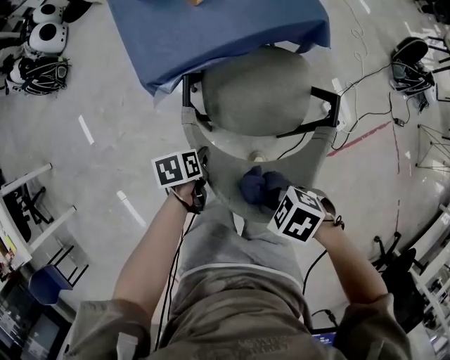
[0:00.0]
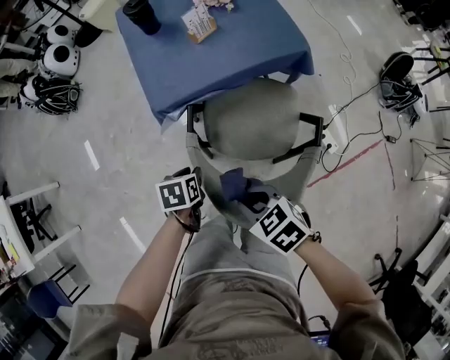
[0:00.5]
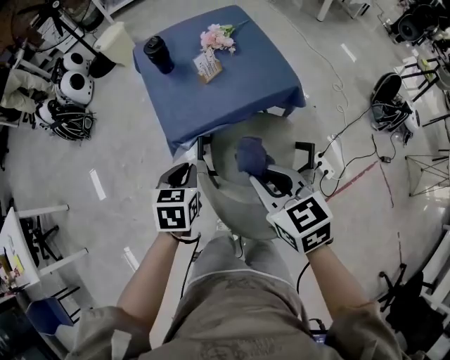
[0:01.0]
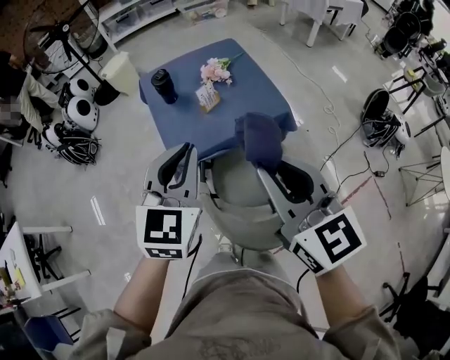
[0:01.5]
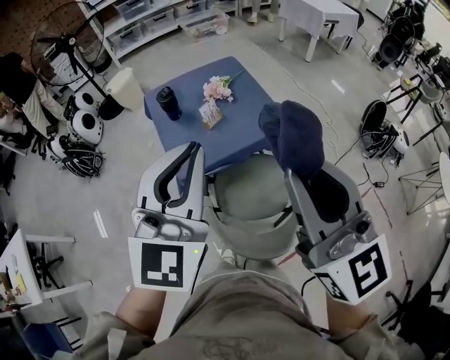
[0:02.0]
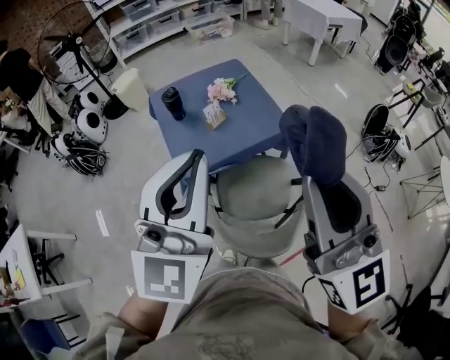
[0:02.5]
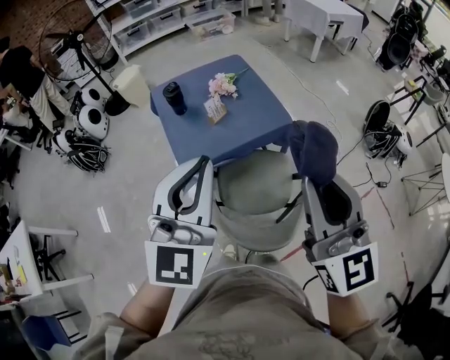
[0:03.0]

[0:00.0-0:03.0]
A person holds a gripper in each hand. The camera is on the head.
0:00.0 to 0:01.5: Both grippers travel together upward, some 40 cm. The right gripper tilts its fingers approximately 50 degrees upward; the left gripper points its fingers roughly 50 degrees further upward, and closes its fingers.
0:01.5 to 0:03.0: The left gripper shifts approximately 10 cm upward and backward; the right gripper moves to the right, backward and upward, about 10 cm.

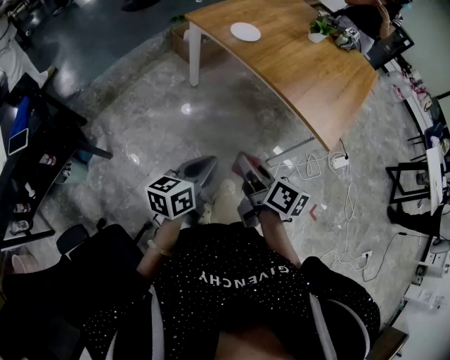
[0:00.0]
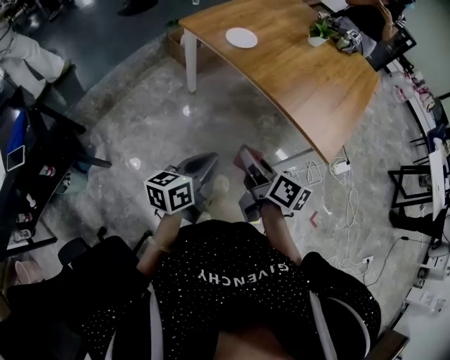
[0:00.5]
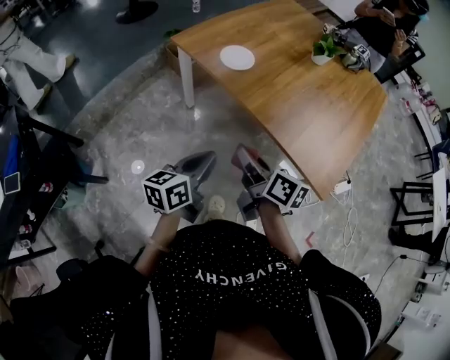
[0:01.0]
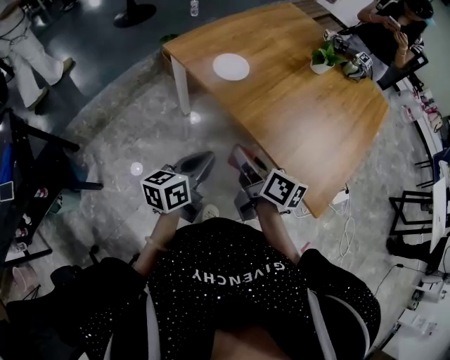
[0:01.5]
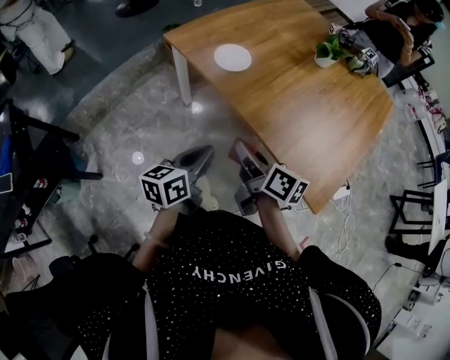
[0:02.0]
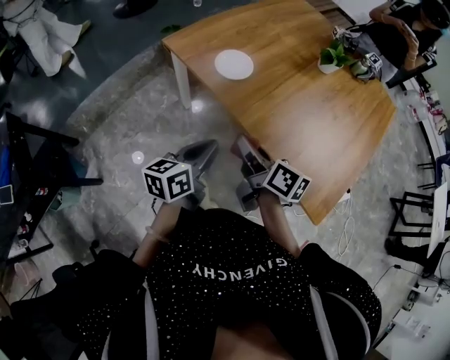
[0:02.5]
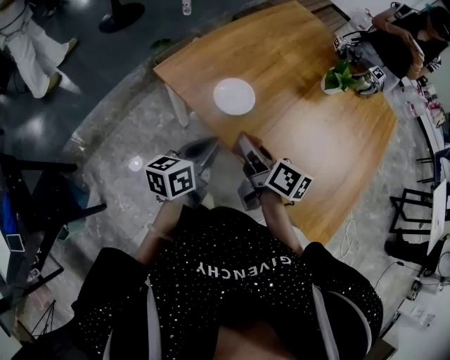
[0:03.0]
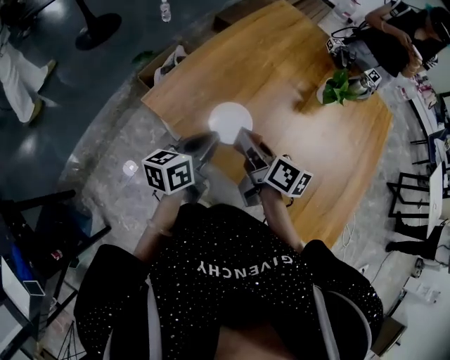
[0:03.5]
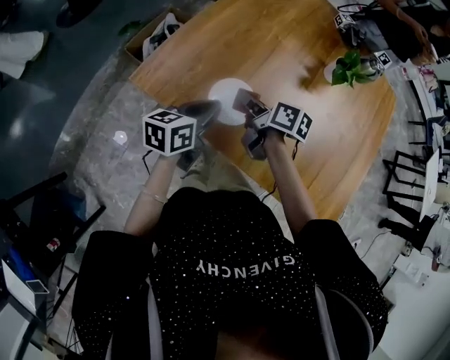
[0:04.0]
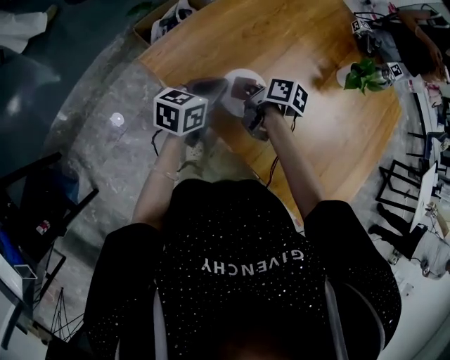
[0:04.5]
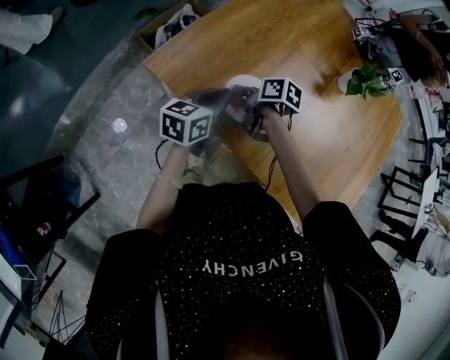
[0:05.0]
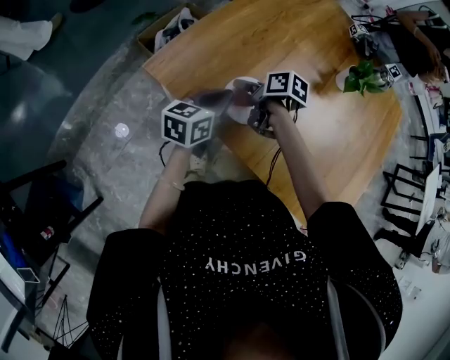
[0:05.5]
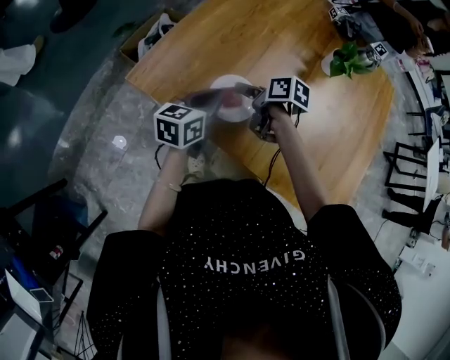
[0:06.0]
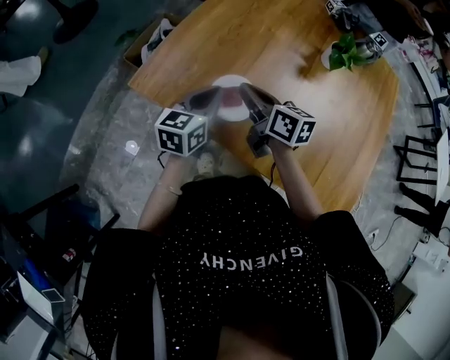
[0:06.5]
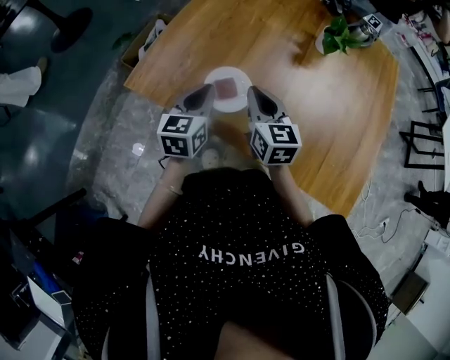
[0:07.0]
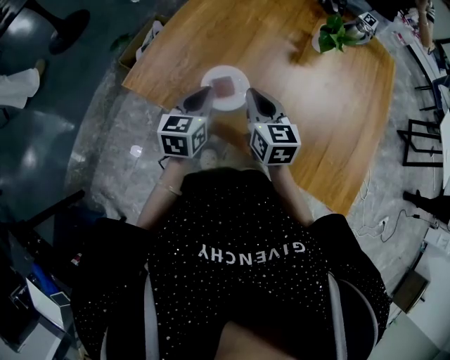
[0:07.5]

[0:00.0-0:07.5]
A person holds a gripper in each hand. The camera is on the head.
0:00.0 to 0:02.0: Both grippers travel together forward, roughly 30 cm.
0:02.0 to 0:04.0: The two grippers travel together, forward, roughly 40 cm. The left gripper changes its angle by approximately 20 degrees.
0:04.0 to 0:05.5: The right gripper moves downward, roughly 5 cm, changes its angle by roughly 20 degrees, and opens up.
0:05.5 to 0:07.5: The right gripper travels upward, backward and to the right by about 15 cm, changes its angle by roughly 50 degrees, and closes up.

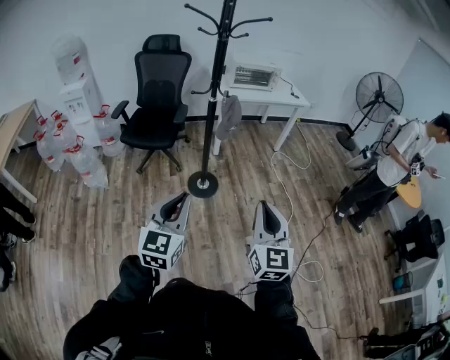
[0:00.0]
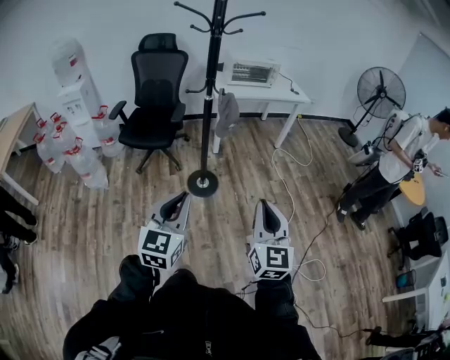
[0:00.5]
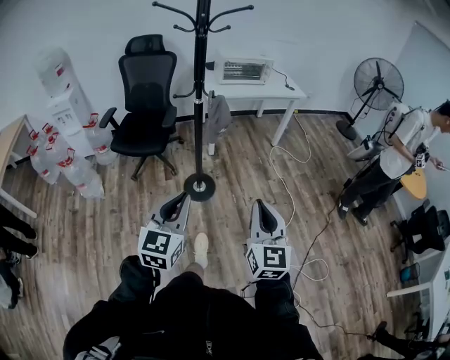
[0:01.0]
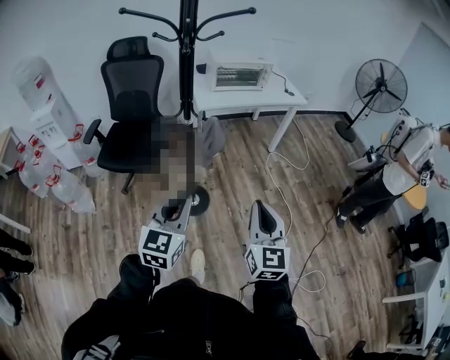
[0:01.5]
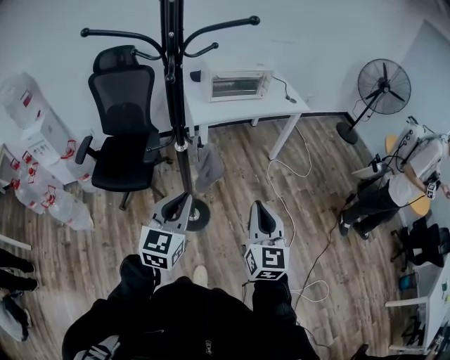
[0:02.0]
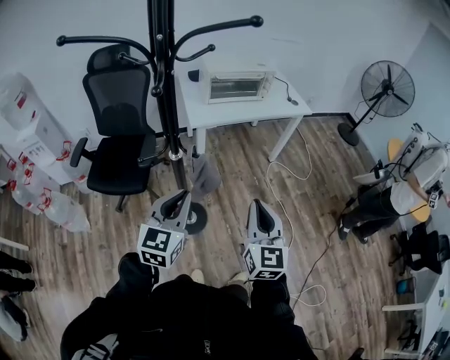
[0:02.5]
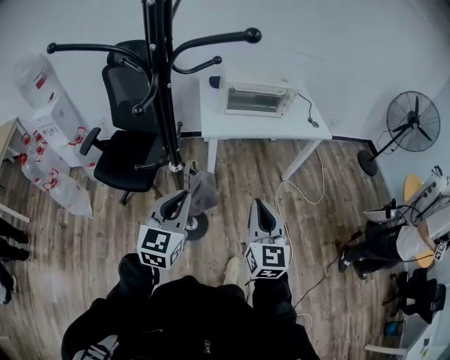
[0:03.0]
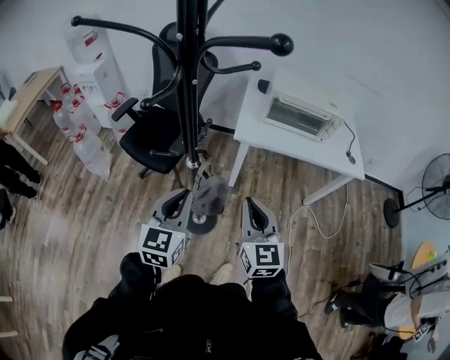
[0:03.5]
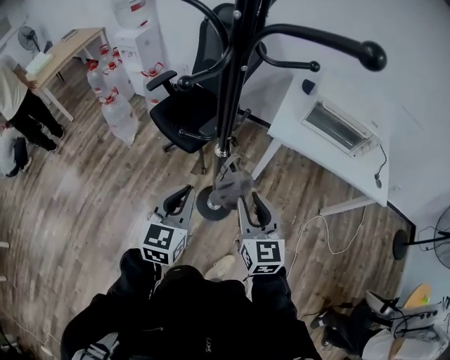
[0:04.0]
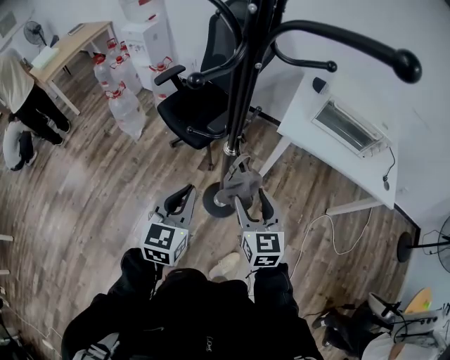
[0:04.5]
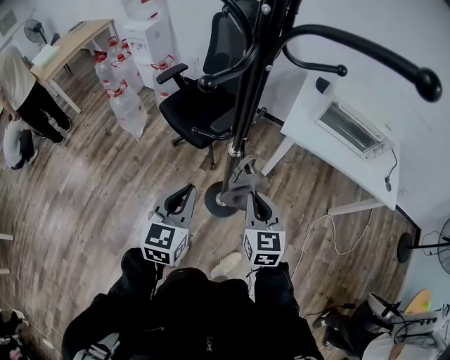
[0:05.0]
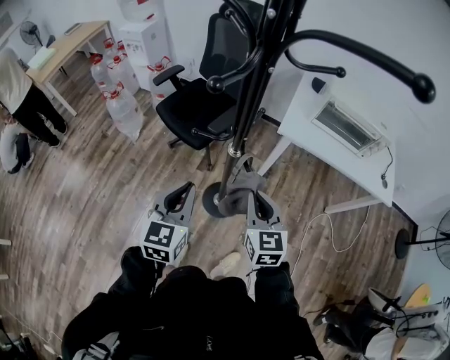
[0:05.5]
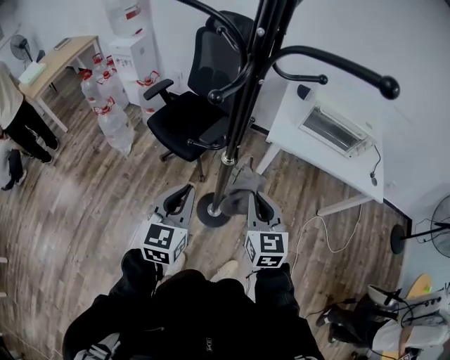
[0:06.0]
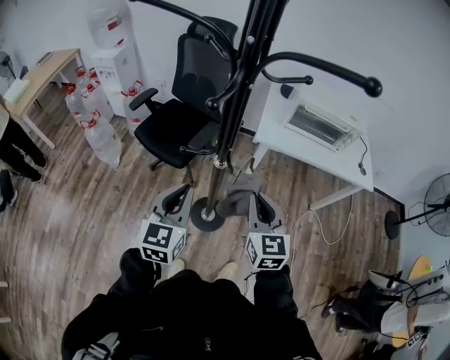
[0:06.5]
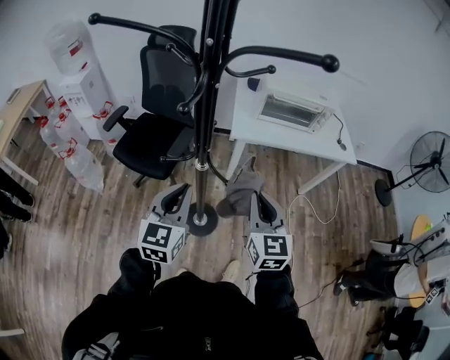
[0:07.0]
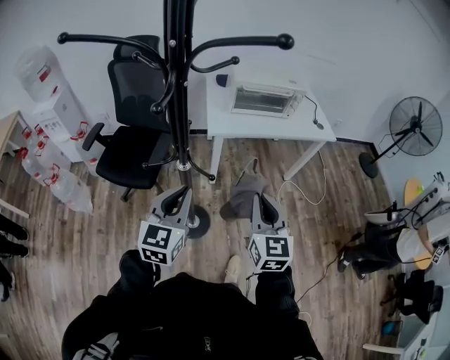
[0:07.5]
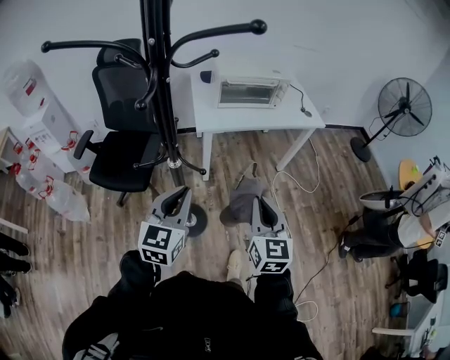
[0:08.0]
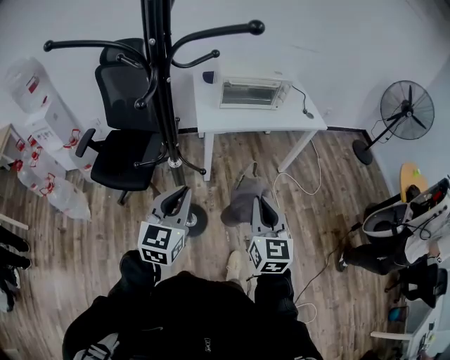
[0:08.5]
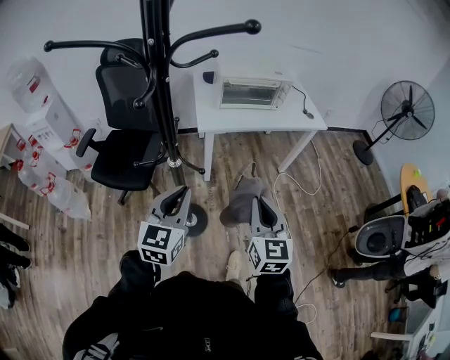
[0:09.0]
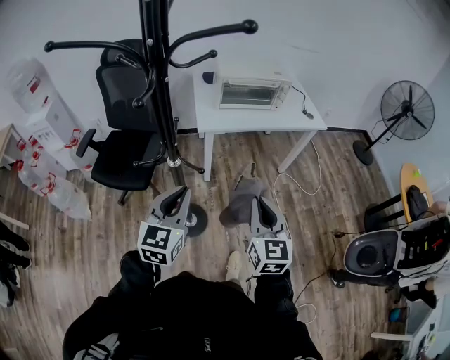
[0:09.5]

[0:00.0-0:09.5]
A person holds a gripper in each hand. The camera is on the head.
0:00.0 to 0:02.0: The pair of grippers is taken forward, roughly 50 cm.
0:02.0 to 0:04.0: The right gripper ends up some 25 cm from where it was, swivels roughly 50 degrees, and opens. Meanwhile the left gripper ends up roughly 15 cm from where it was, and changes its angle by approximately 40 degrees.
0:04.0 to 0:05.5: The right gripper closes up.
0:05.5 to 0:07.5: The left gripper moves roughly 10 cm, and turns by roughly 30 degrees, while the right gripper changes place by about 15 cm, and changes its angle by approximately 40 degrees.
0:07.5 to 0:09.5: The right gripper shifts by roughly 5 cm.

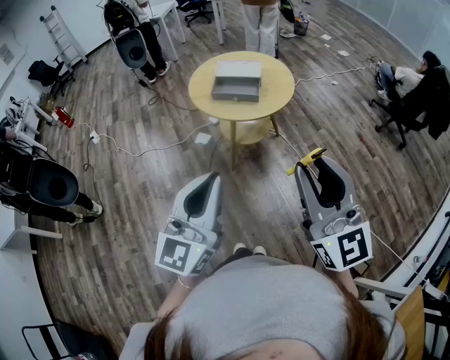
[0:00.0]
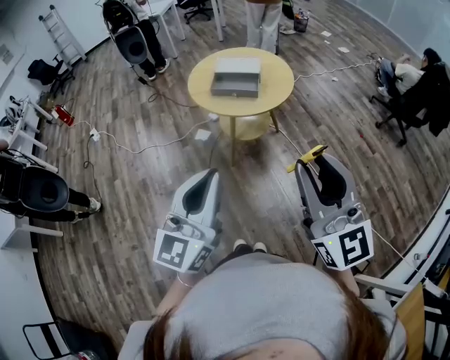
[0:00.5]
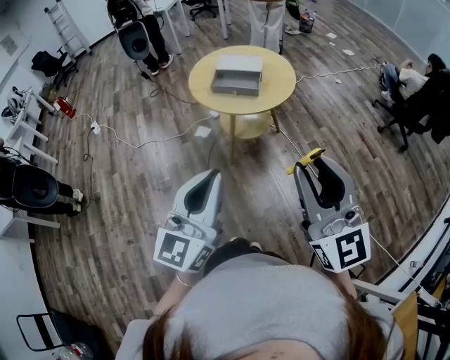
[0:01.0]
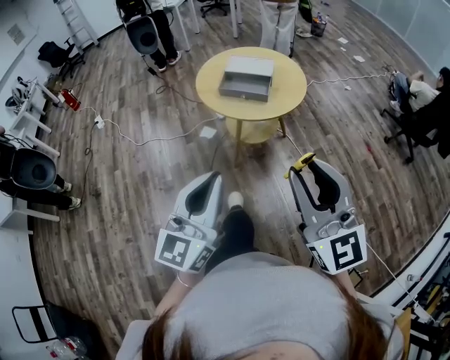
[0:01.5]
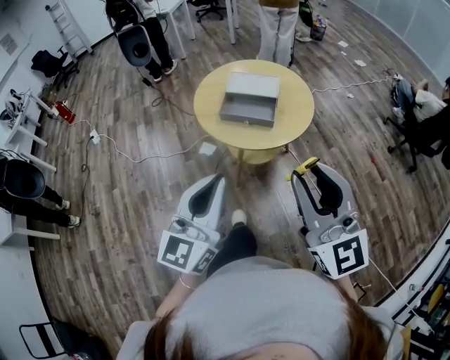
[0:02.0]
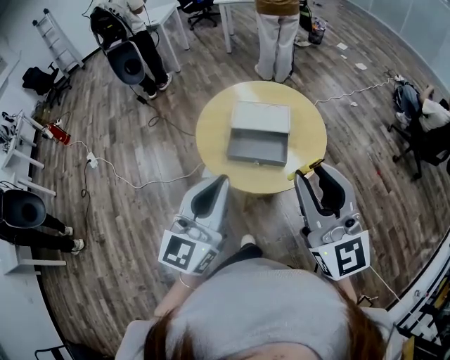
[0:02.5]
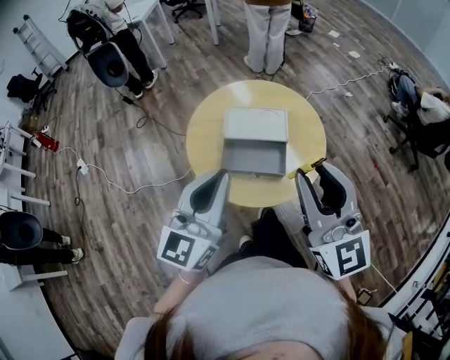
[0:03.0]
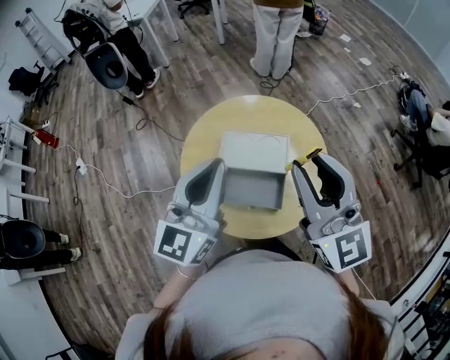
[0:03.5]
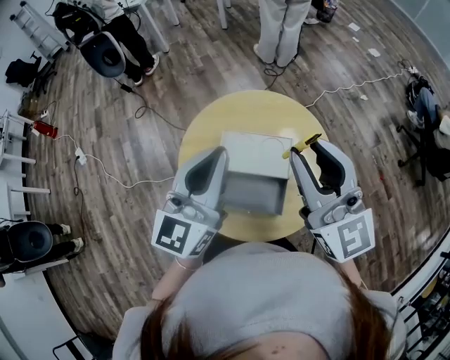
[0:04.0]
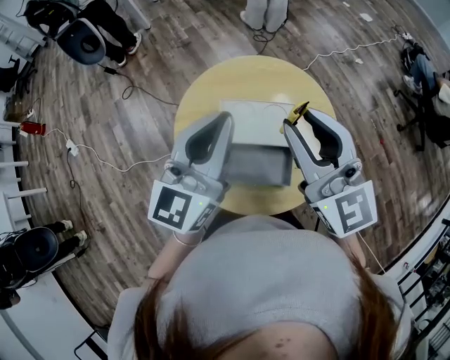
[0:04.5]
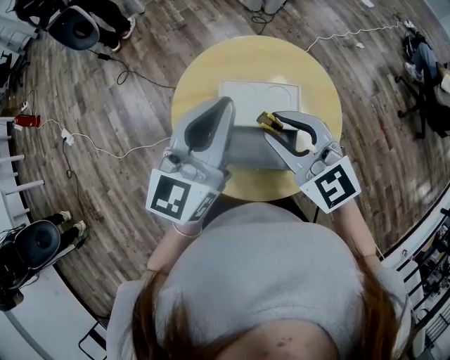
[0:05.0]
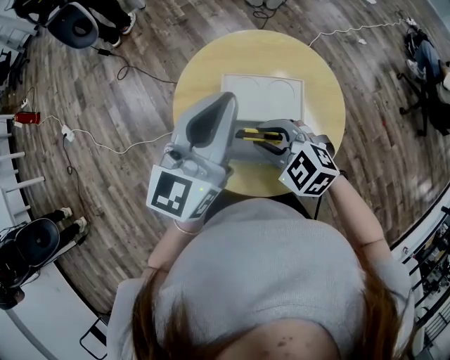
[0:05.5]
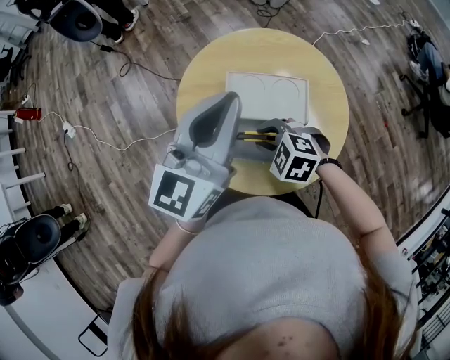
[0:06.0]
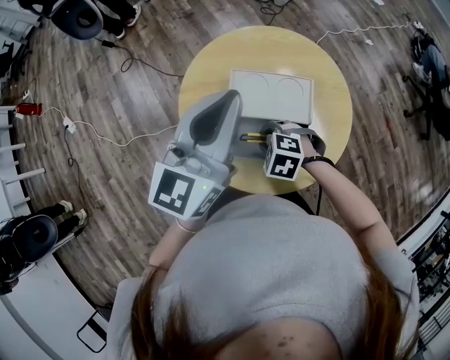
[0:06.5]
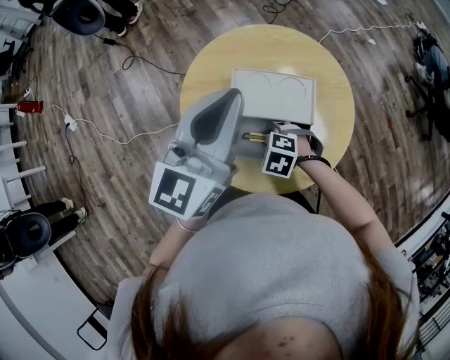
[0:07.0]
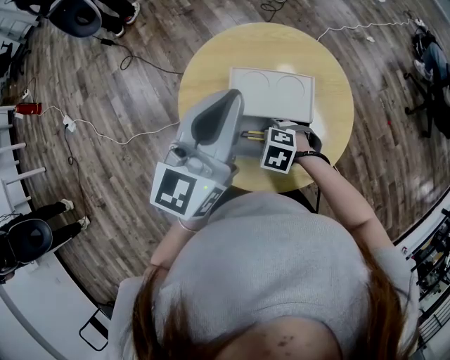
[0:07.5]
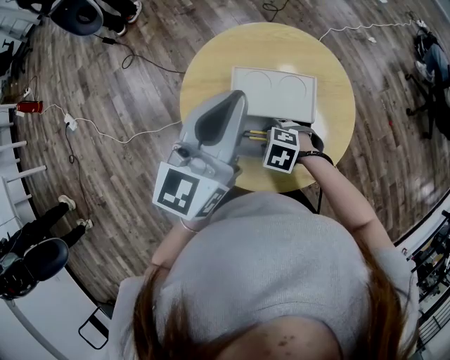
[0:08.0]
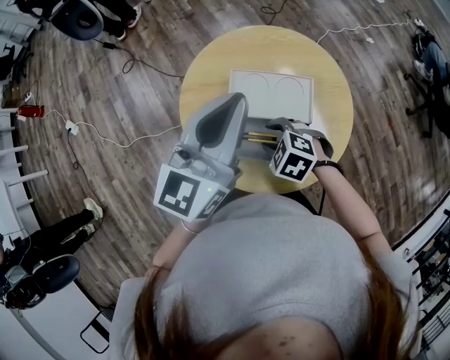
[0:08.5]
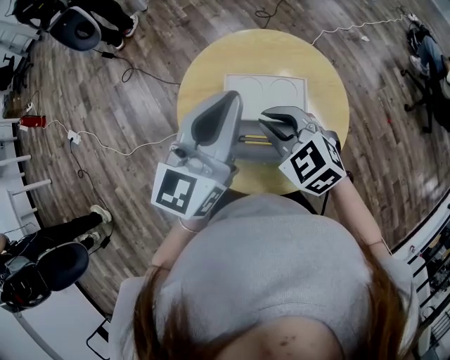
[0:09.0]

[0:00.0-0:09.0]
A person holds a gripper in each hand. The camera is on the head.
0:00.0 to 0:02.0: Both grippers move forward, some 15 cm.
0:02.0 to 0:04.5: Both grippers are carried forward, approximately 50 cm.
0:04.5 to 0:07.0: The right gripper goes approximately 35 cm downward, and points its fingers approximately 70 degrees further downward.
0:07.0 to 0:09.0: The right gripper shifts about 20 cm upward, and points its fingers approximately 40 degrees further upward.
